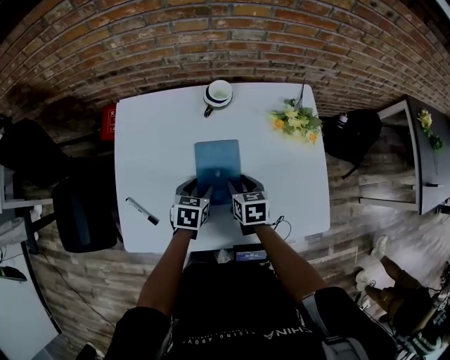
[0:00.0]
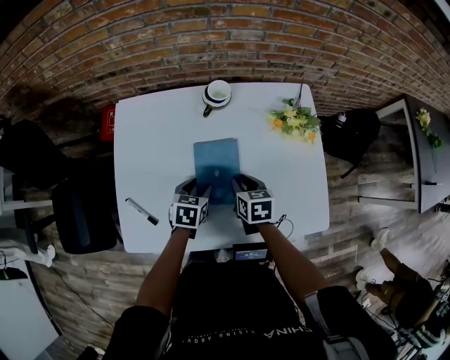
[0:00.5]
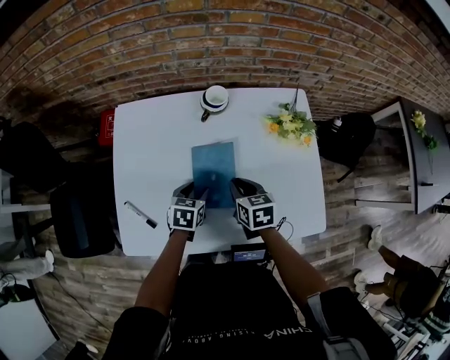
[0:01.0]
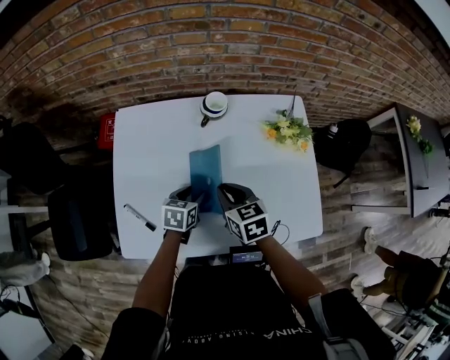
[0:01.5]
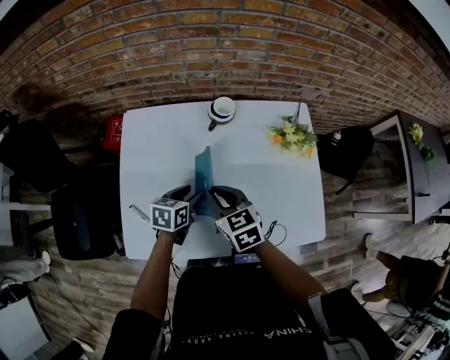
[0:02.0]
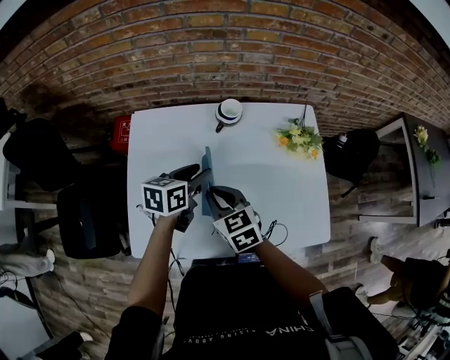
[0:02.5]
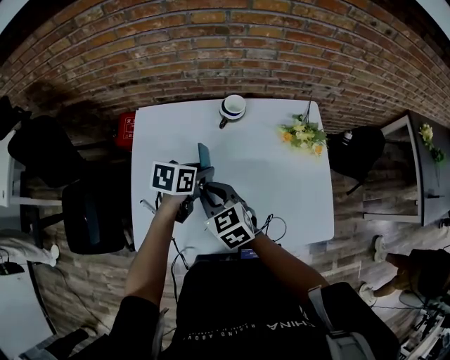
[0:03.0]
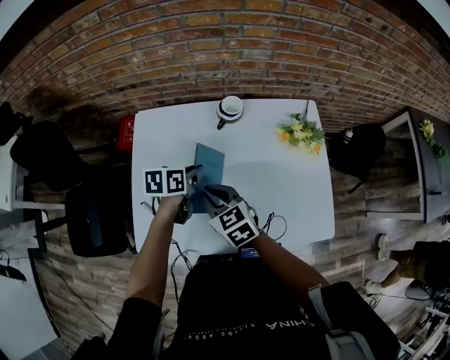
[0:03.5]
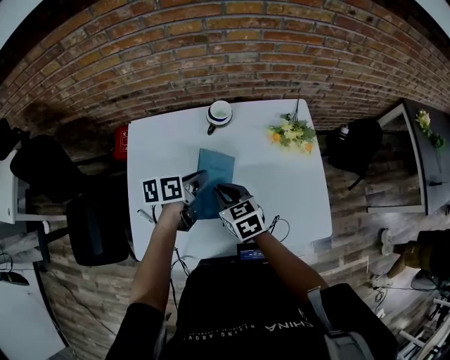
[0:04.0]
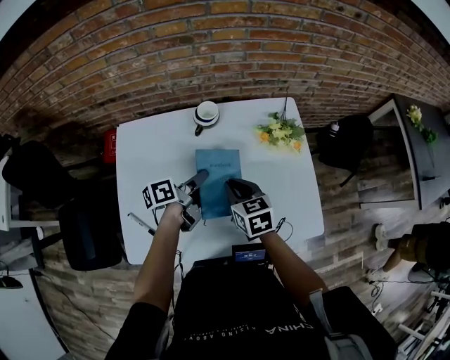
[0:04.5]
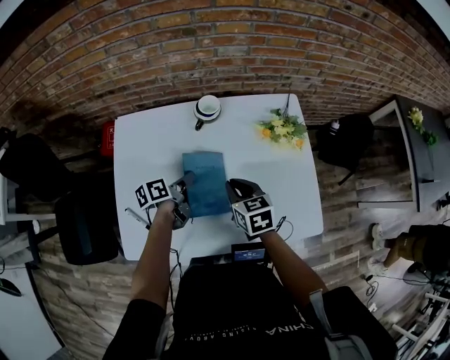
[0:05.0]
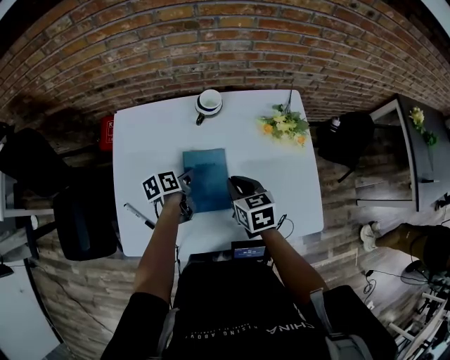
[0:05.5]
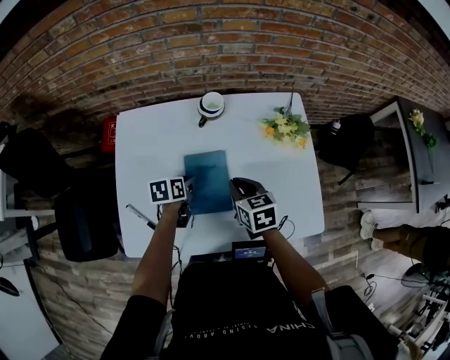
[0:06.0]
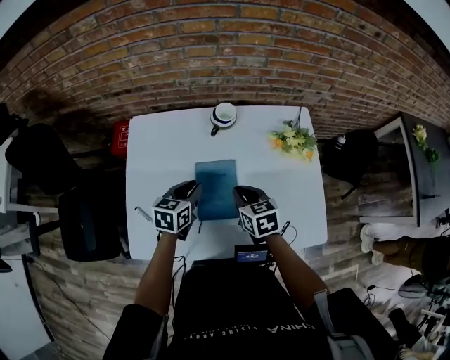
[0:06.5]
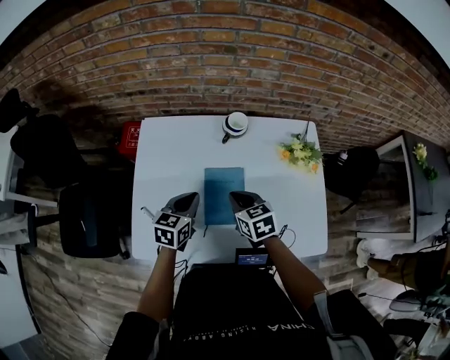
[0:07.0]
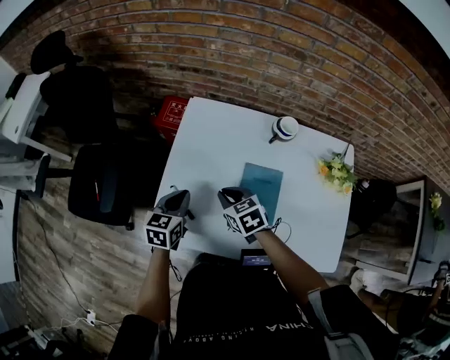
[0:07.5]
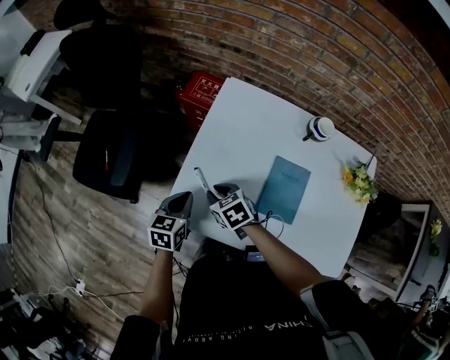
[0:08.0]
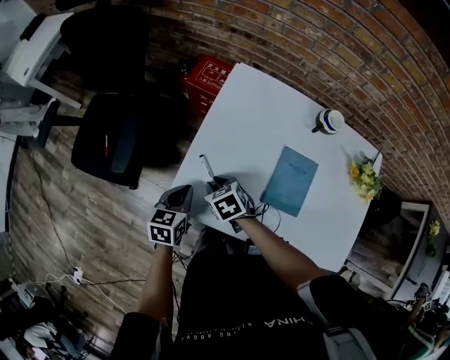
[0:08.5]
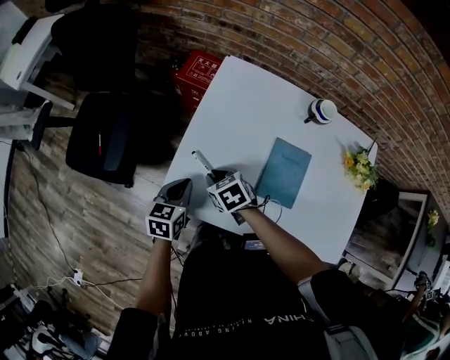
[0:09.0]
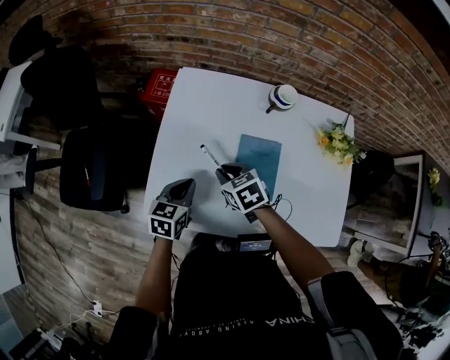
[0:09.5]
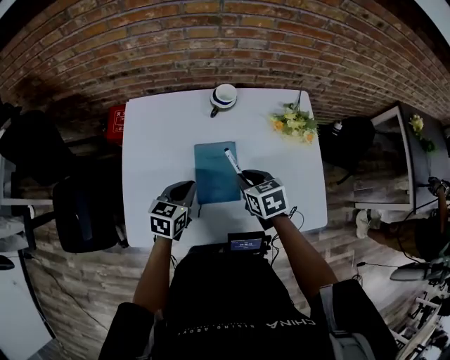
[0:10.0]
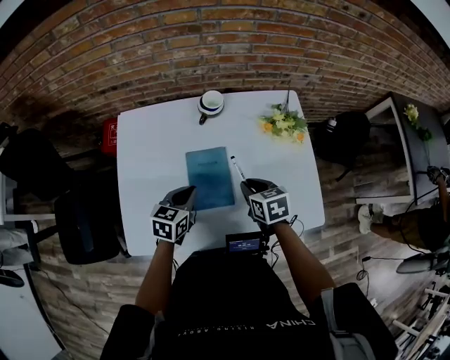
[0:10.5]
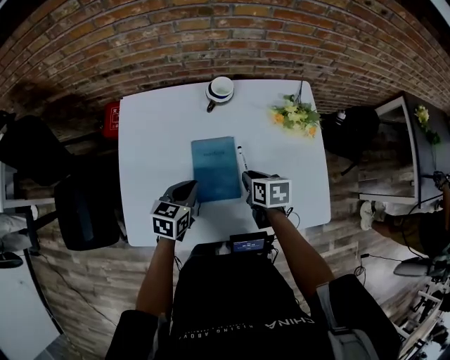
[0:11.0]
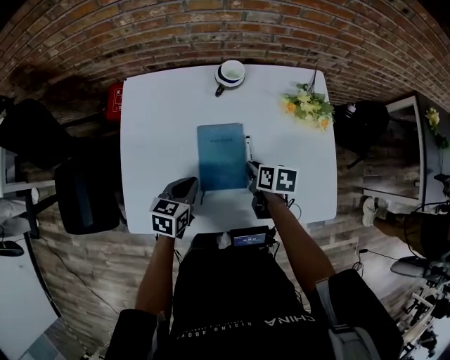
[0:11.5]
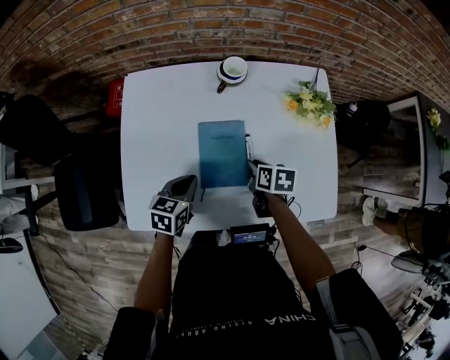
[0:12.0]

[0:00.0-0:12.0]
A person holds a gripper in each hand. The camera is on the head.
0:00.0 to 0:02.0: The right gripper is displaced upward and to the left by roughly 15 cm, changes its angle by about 30 degrees, and closes its fingers. Meanwhile the left gripper ends up roughly 5 cm from where it was.
0:02.0 to 0:04.0: The left gripper is displaced upward by approximately 10 cm, swivels about 20 degrees, and closes its fingers.
0:04.0 to 0:06.0: The left gripper is displaced downward by some 10 cm, and opens. The right gripper travels to the right by some 5 cm.
0:06.0 to 0:08.0: The left gripper shifts by about 30 cm, changes its angle by about 30 degrees, and closes its fingers. Meanwhile the right gripper ends up roughly 35 cm from where it was, and turns by some 50 degrees.
0:08.0 to 0:10.0: The right gripper changes place by approximately 35 cm, and changes its angle by roughly 40 degrees, while the left gripper moves about 25 cm, and turns by approximately 30 degrees.
0:10.0 to 0:12.0: The right gripper moves downward, approximately 10 cm, and changes its angle by roughly 30 degrees.

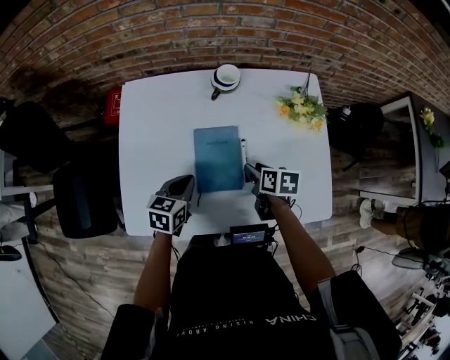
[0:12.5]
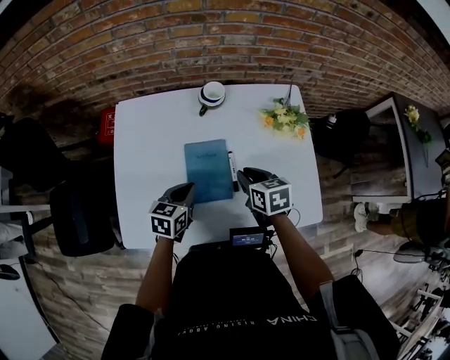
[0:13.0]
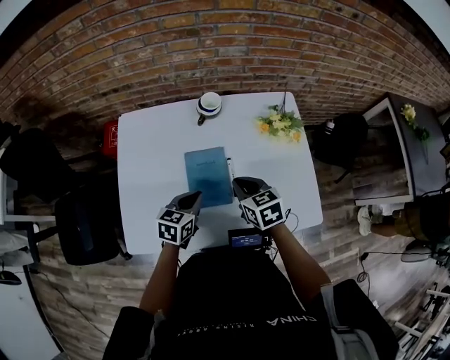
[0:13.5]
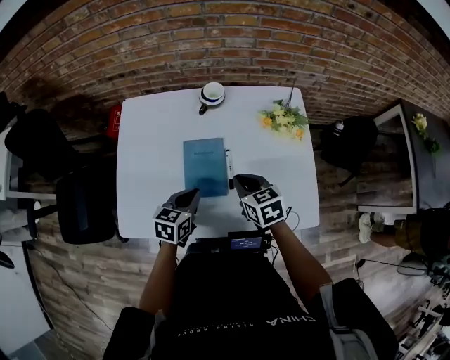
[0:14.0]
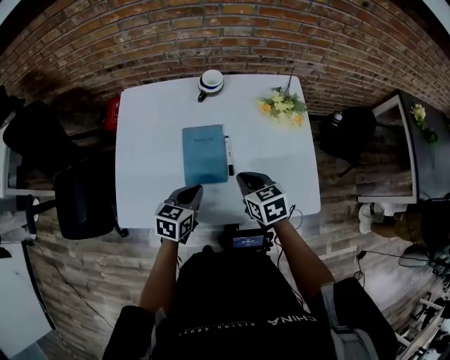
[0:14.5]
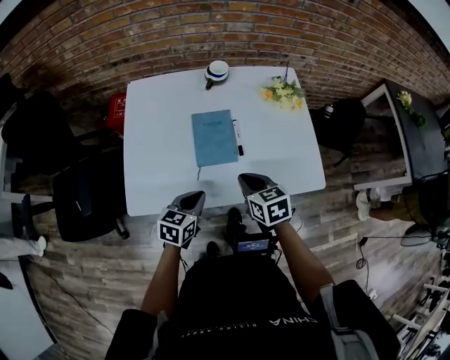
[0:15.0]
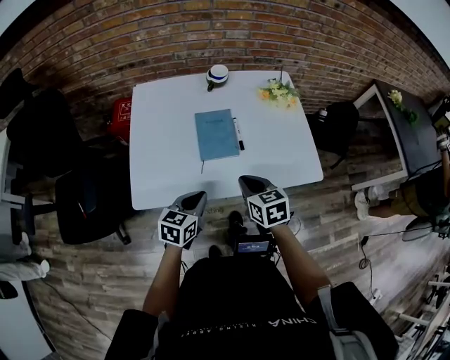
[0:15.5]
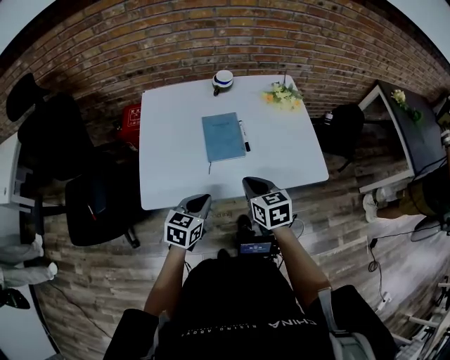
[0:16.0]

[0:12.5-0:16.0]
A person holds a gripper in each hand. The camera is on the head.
0:12.5 to 0:14.5: The left gripper shifts about 10 cm to the right and backward; the right gripper shifts some 10 cm upward and backward, swivels some 30 degrees, and closes.
0:14.5 to 0:16.0: The two grippers go about 15 cm backward.

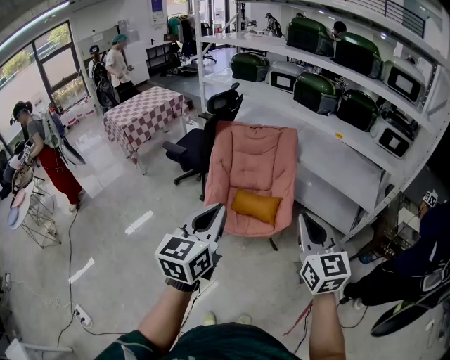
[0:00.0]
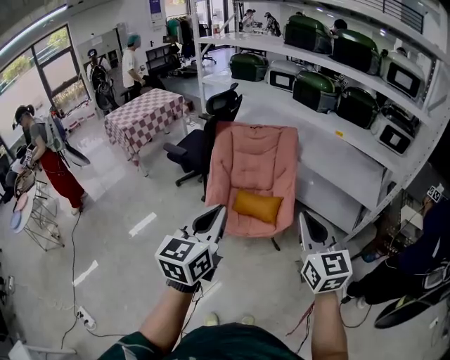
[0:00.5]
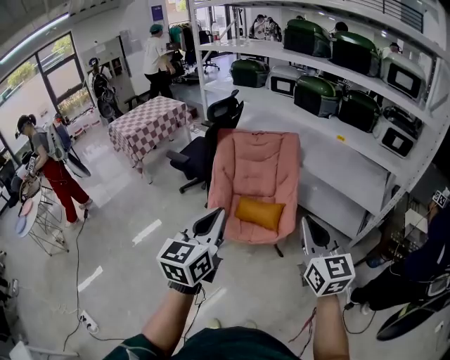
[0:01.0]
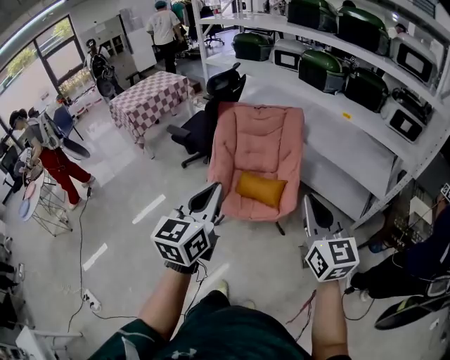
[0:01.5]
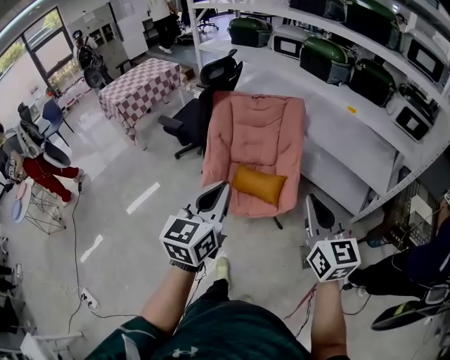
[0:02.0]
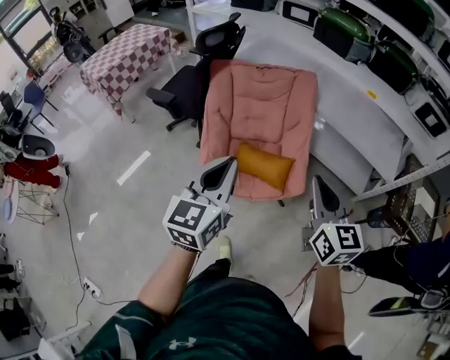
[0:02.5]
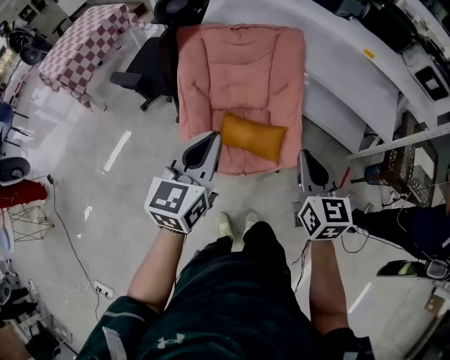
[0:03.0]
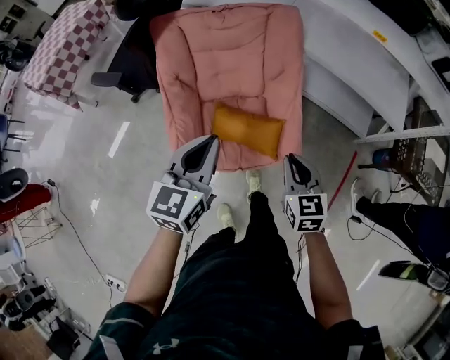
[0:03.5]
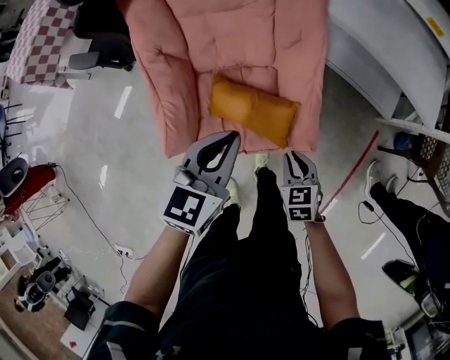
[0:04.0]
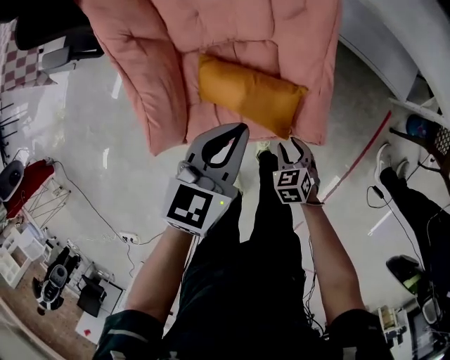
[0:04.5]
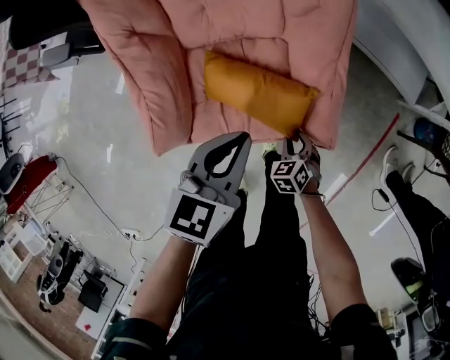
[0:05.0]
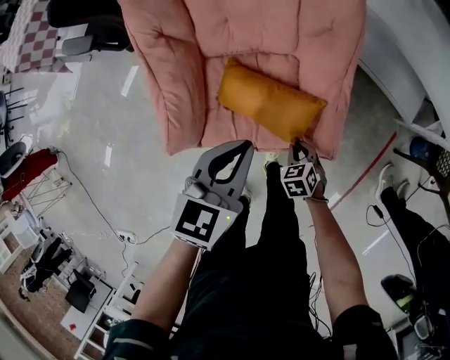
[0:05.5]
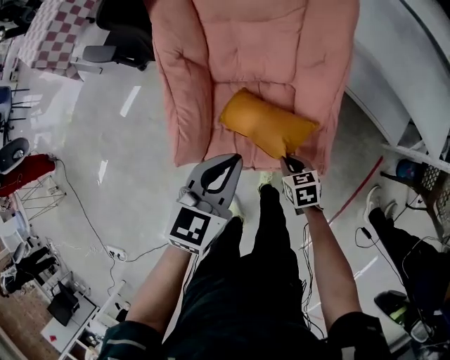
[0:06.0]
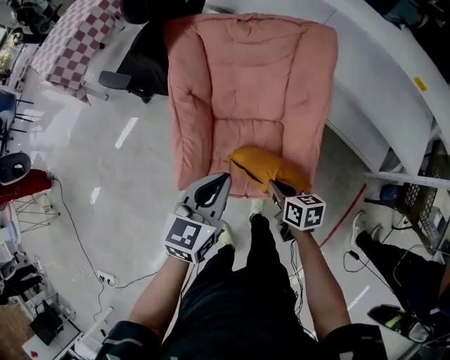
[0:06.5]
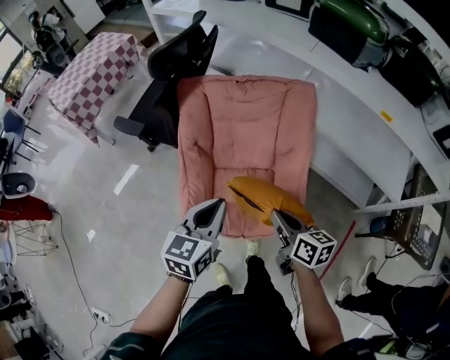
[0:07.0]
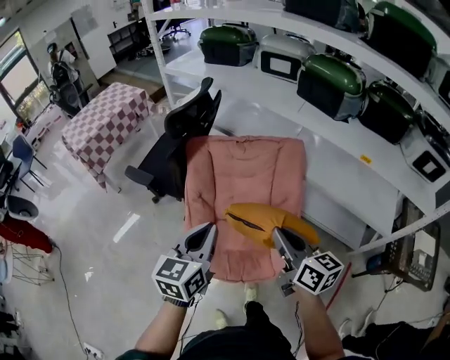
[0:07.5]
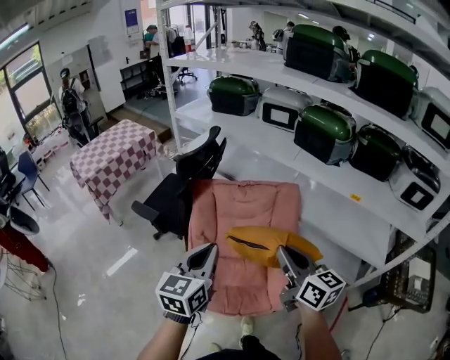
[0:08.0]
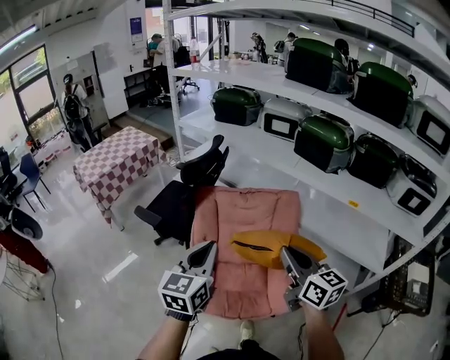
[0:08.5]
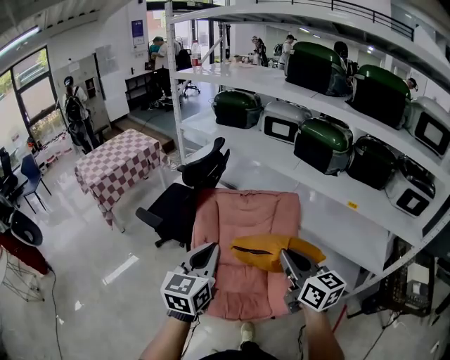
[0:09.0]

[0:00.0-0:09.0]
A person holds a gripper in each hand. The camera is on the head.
0:00.0 to 0:02.0: The right gripper shifts roughly 10 cm forward, while the left gripper heads forward and downward, covering roughly 10 cm.
0:02.0 to 0:04.5: The left gripper shifts about 60 cm downward and forward, and changes its angle by some 40 degrees. The right gripper heads downward, covering roughly 70 cm, tips its fingers downward by about 60 degrees, and opens up.
0:04.5 to 0:07.0: The left gripper travels upward by approximately 20 cm; the right gripper goes about 40 cm upward, tips its fingers upward by roughly 40 degrees, and closes up.
0:07.0 to 0:09.0: The two grippers go some 25 cm upward. The right gripper swivels roughly 30 degrees.

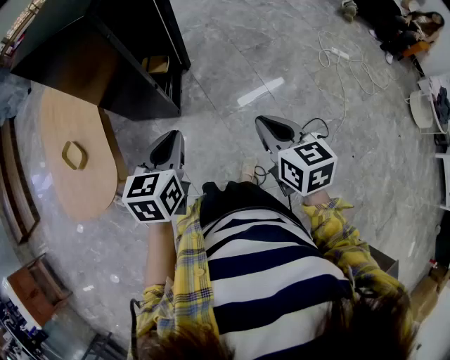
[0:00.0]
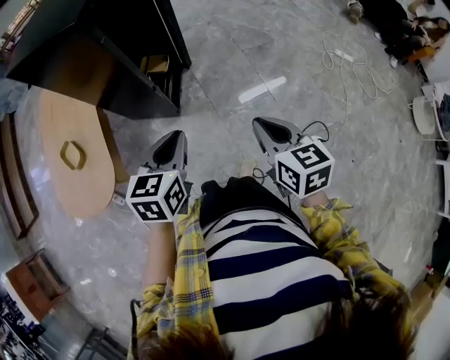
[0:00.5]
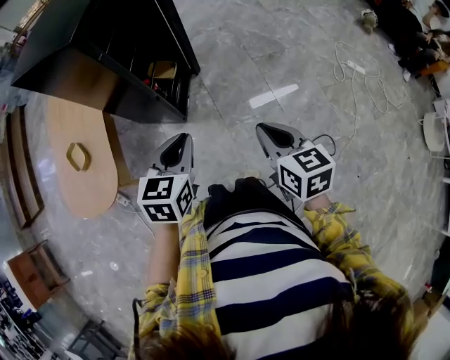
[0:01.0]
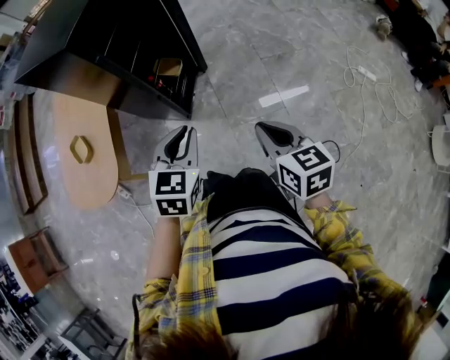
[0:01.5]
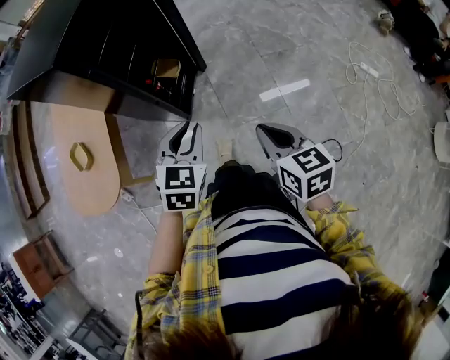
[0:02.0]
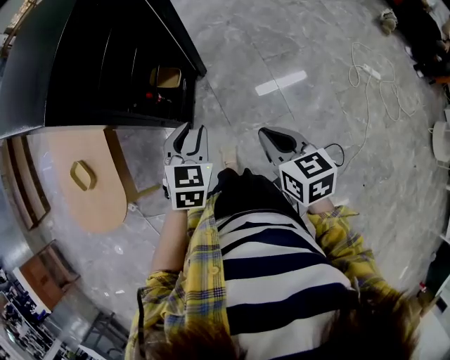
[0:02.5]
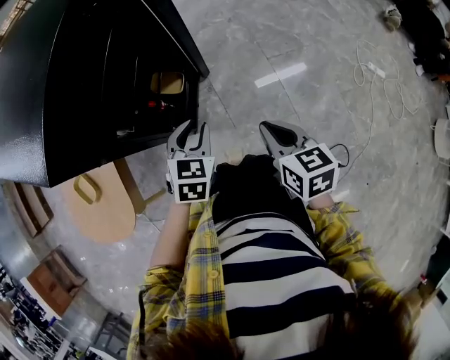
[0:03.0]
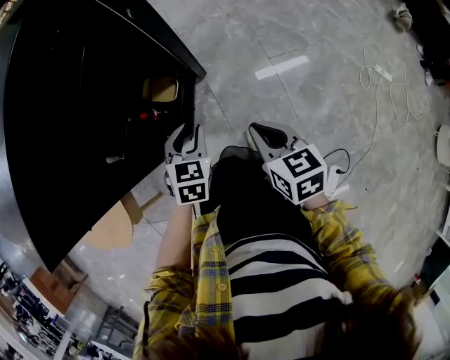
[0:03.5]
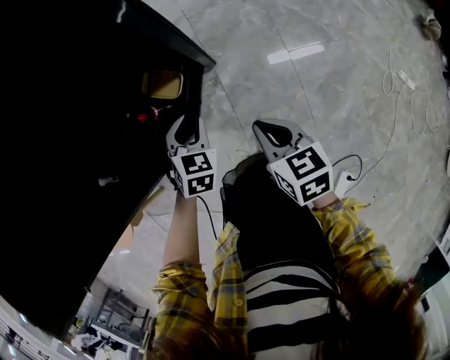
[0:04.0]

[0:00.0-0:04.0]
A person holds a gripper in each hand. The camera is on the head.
0:00.0 to 0:02.0: The two grippers go approximately 15 cm forward and to the right. The left gripper turns by approximately 20 degrees.
0:02.0 to 0:04.0: The grippers both shift forward and downward by approximately 35 cm.
